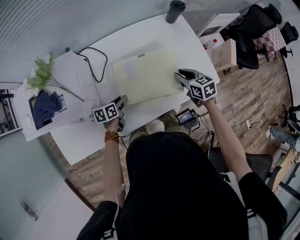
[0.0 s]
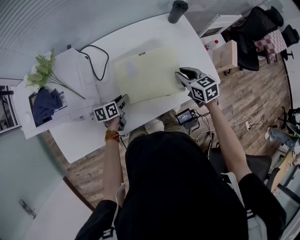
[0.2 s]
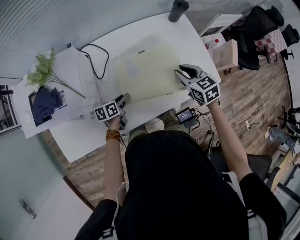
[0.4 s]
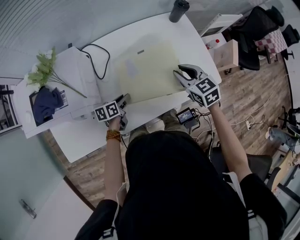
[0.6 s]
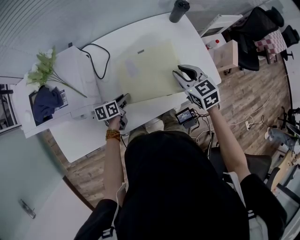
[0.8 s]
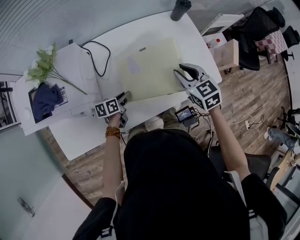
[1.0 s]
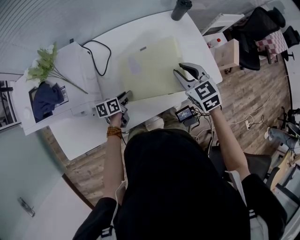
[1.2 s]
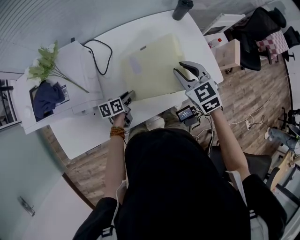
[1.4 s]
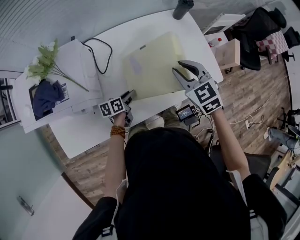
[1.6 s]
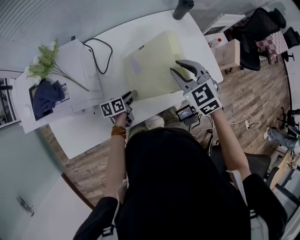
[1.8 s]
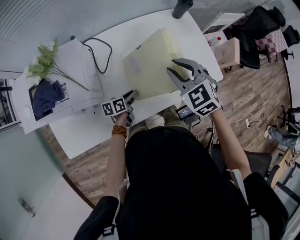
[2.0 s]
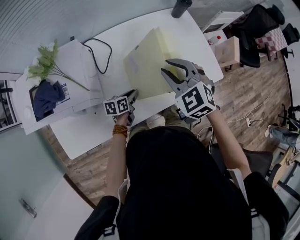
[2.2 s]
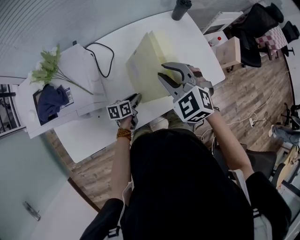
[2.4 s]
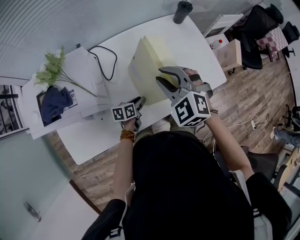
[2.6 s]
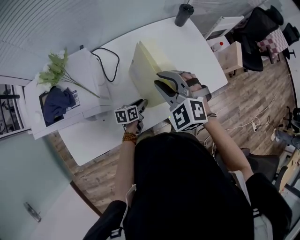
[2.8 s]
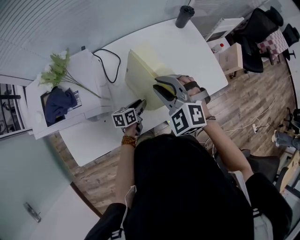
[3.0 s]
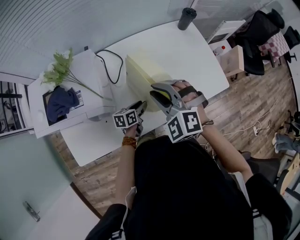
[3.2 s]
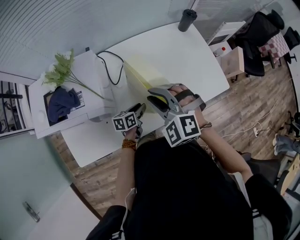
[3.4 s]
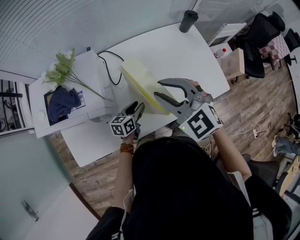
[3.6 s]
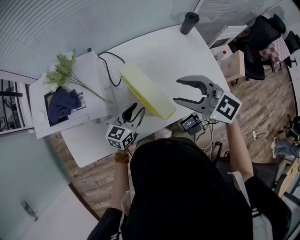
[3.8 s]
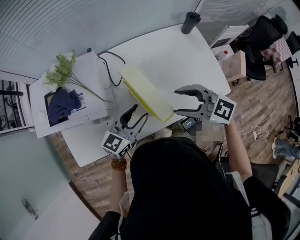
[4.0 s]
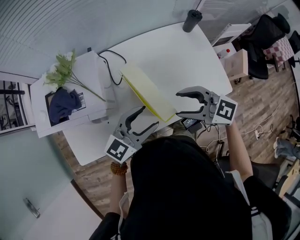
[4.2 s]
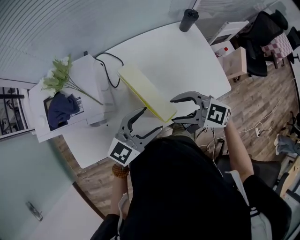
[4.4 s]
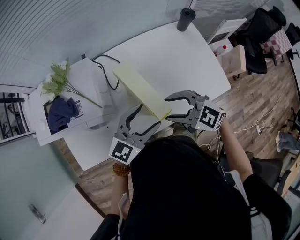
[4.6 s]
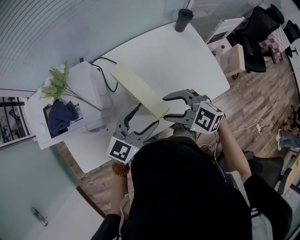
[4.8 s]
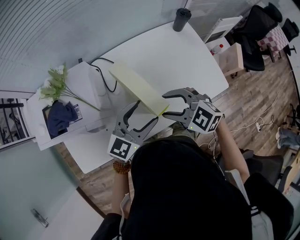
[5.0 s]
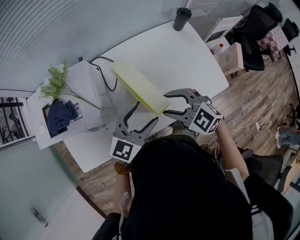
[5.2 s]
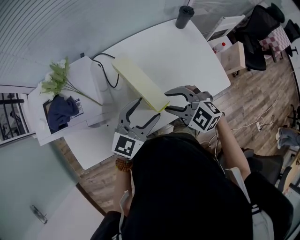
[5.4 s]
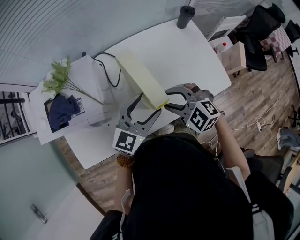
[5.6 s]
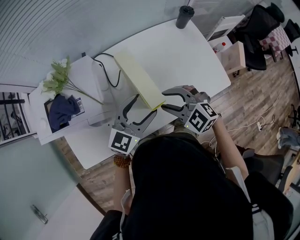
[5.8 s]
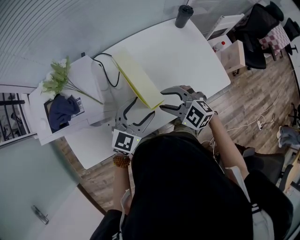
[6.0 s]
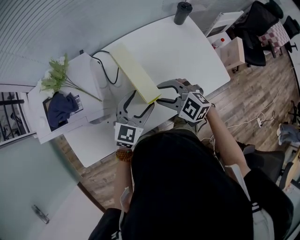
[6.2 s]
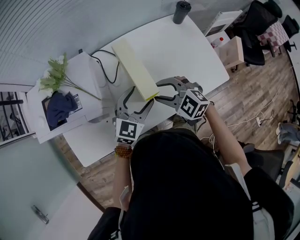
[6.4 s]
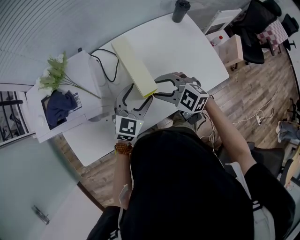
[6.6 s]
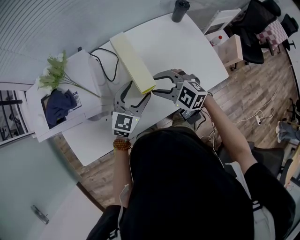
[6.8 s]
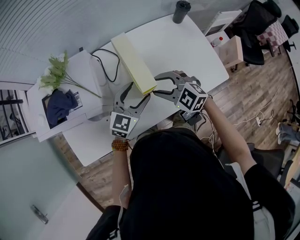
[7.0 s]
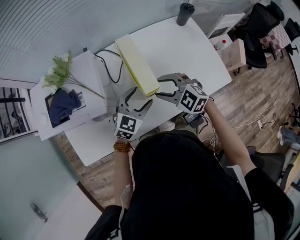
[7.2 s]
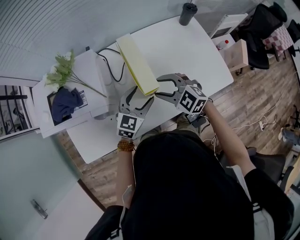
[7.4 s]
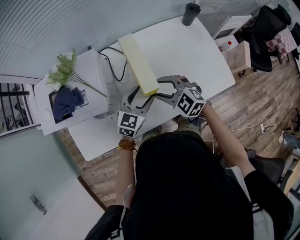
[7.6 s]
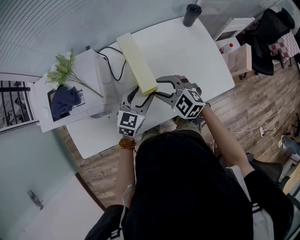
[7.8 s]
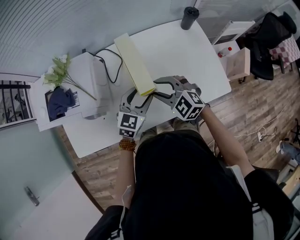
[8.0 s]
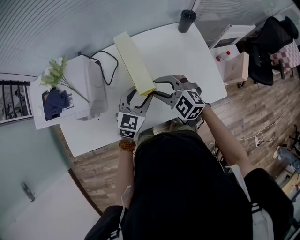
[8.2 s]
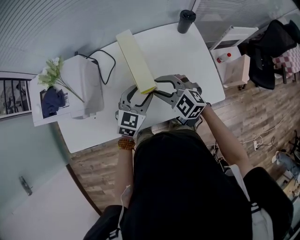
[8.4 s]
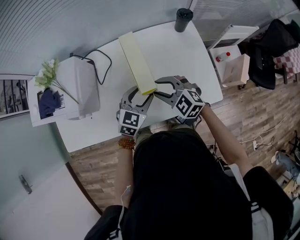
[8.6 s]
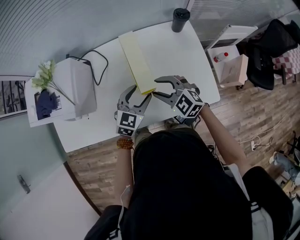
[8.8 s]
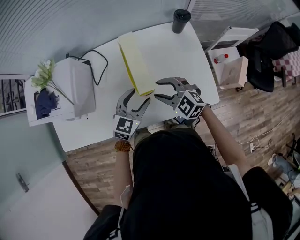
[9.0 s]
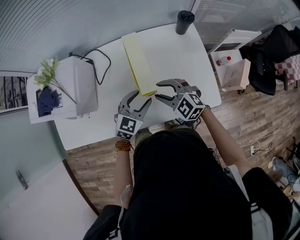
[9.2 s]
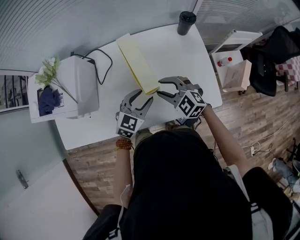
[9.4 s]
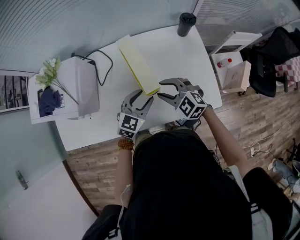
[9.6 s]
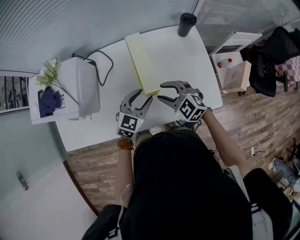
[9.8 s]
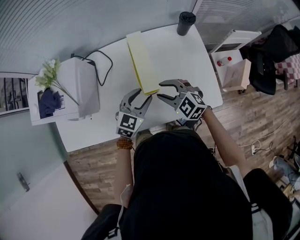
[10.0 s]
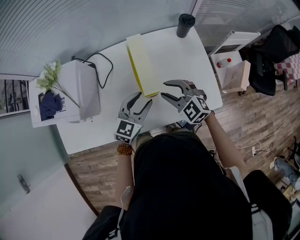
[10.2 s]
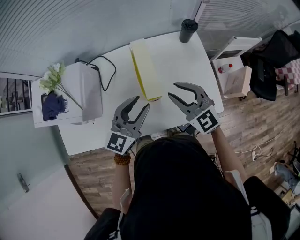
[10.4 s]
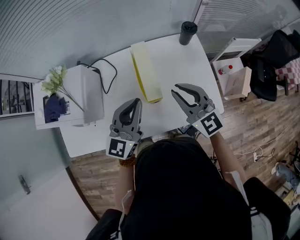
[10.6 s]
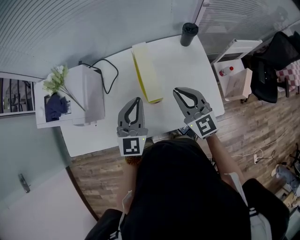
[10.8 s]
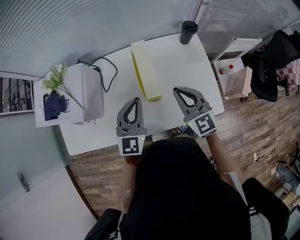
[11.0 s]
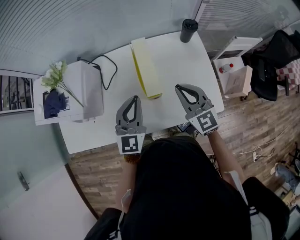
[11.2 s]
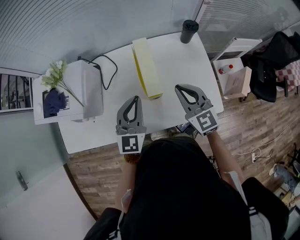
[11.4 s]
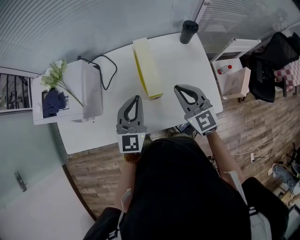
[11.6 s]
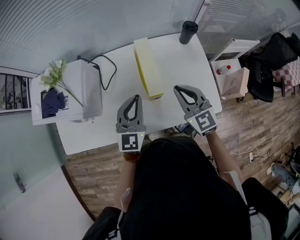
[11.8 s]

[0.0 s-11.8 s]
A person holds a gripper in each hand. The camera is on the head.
0.0 to 1.4 s: The right gripper shifts some 15 cm upward and to the left, and changes its angle by about 30 degrees.
1.4 to 3.0 s: The right gripper moves to the left and backward, about 15 cm, and turns by about 30 degrees.
3.0 to 4.4 s: The right gripper goes upward and returns, roughly 5 cm each way, changes its angle by about 50 degrees, and opens, while the left gripper heads upward, covering roughly 25 cm, rotates around the line of its fingers by approximately 50 degrees, clockwise from behind, and opens its fingers.
4.4 to 6.0 s: The right gripper travels downward by approximately 5 cm, and swivels about 20 degrees. The left gripper shifts by roughly 5 cm.
6.0 to 7.4 s: The left gripper is displaced downward by some 5 cm.
7.4 to 8.8 s: Both grippers move to the right, some 15 cm.
8.8 to 10.4 s: Both grippers travel together upward, approximately 10 cm. The left gripper rotates some 20 degrees; the right gripper swivels some 20 degrees.
10.4 to 11.8 s: The left gripper turns by approximately 20 degrees, and closes its fingers. The right gripper closes up.

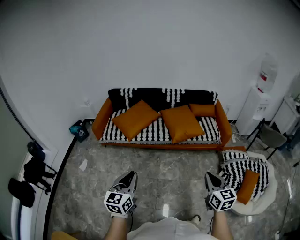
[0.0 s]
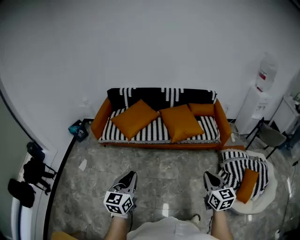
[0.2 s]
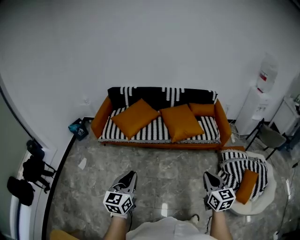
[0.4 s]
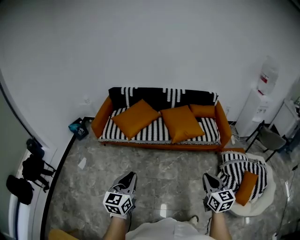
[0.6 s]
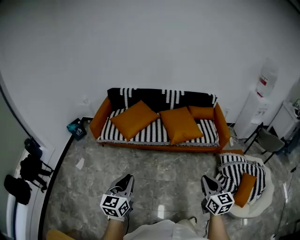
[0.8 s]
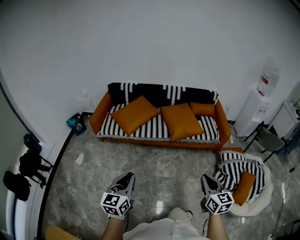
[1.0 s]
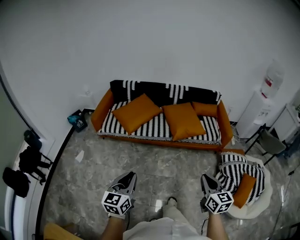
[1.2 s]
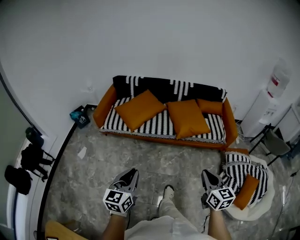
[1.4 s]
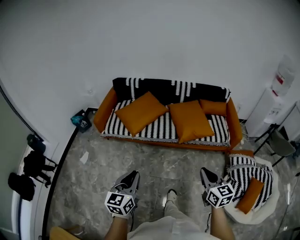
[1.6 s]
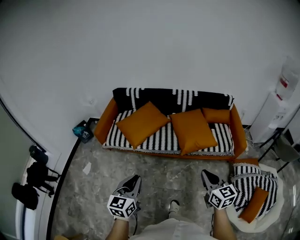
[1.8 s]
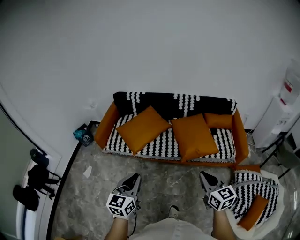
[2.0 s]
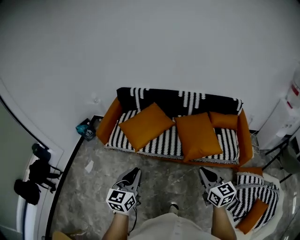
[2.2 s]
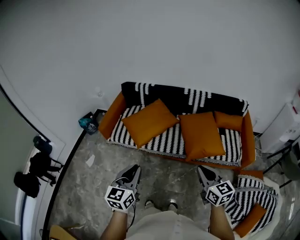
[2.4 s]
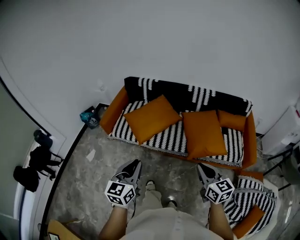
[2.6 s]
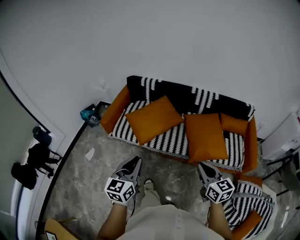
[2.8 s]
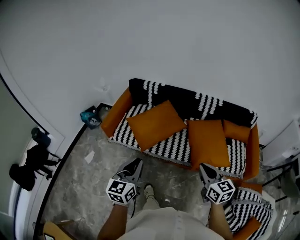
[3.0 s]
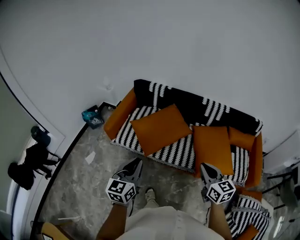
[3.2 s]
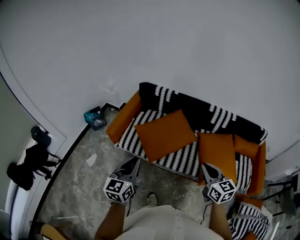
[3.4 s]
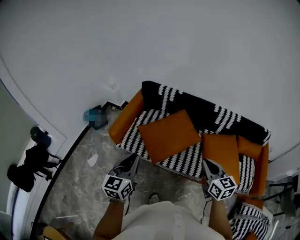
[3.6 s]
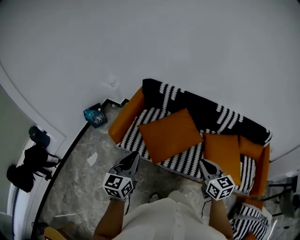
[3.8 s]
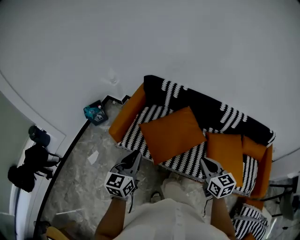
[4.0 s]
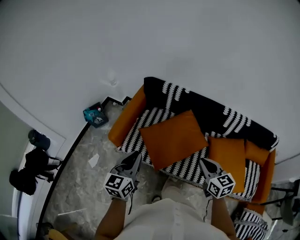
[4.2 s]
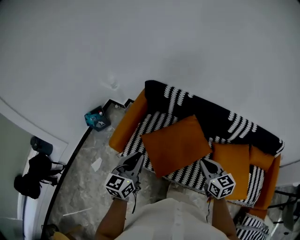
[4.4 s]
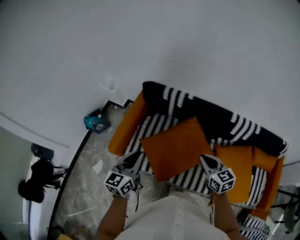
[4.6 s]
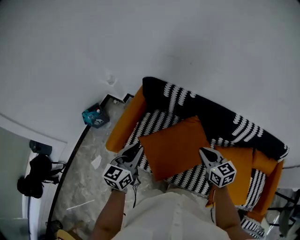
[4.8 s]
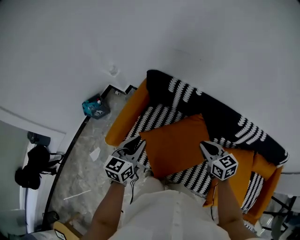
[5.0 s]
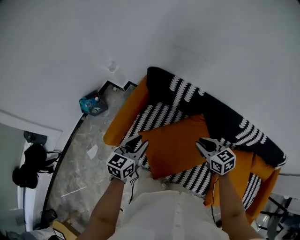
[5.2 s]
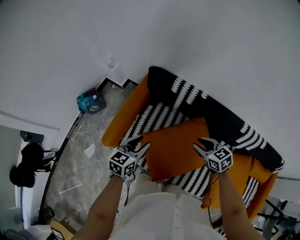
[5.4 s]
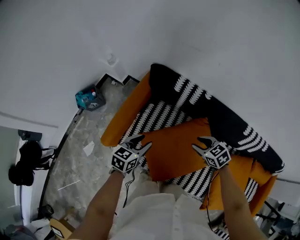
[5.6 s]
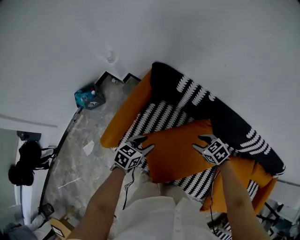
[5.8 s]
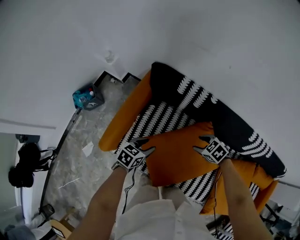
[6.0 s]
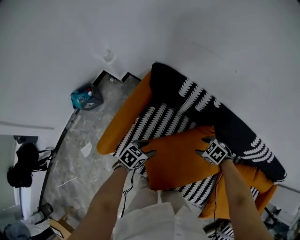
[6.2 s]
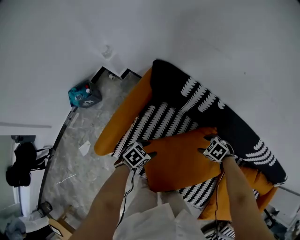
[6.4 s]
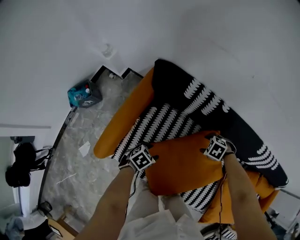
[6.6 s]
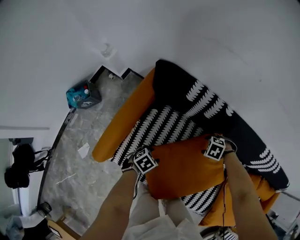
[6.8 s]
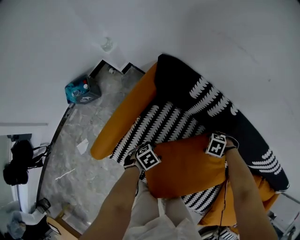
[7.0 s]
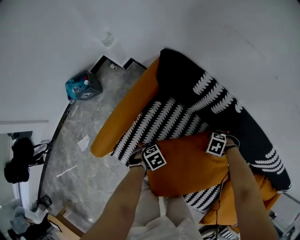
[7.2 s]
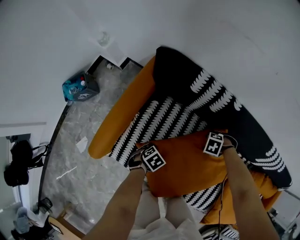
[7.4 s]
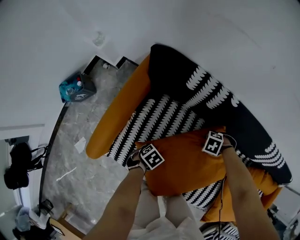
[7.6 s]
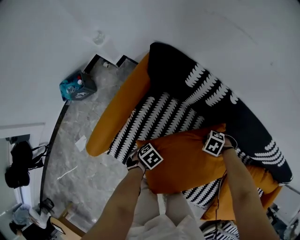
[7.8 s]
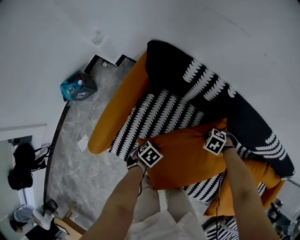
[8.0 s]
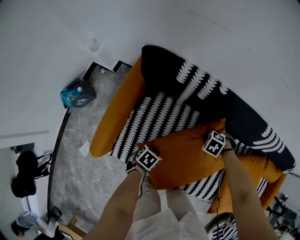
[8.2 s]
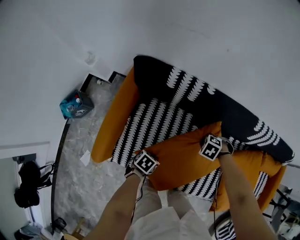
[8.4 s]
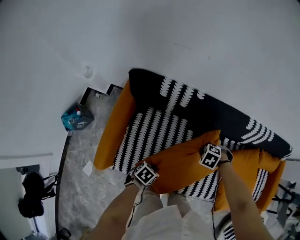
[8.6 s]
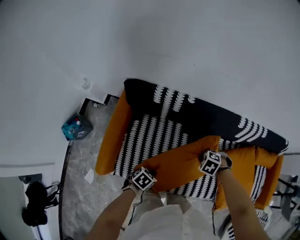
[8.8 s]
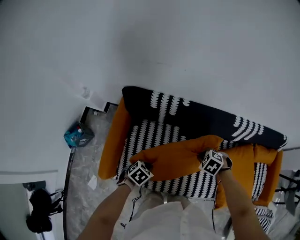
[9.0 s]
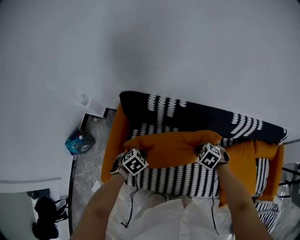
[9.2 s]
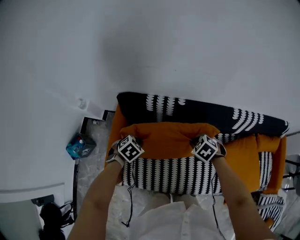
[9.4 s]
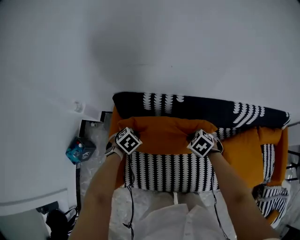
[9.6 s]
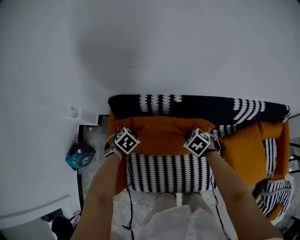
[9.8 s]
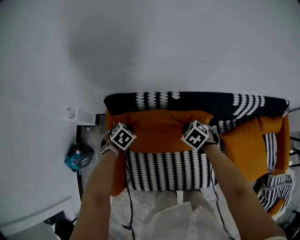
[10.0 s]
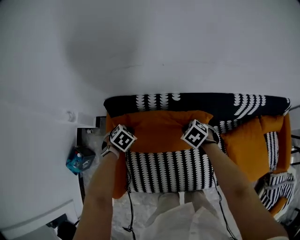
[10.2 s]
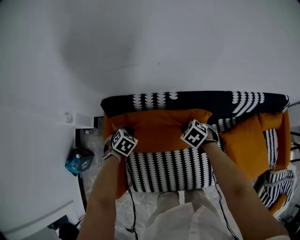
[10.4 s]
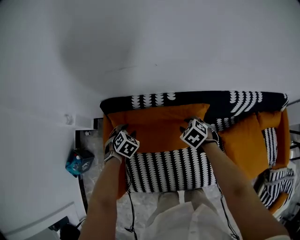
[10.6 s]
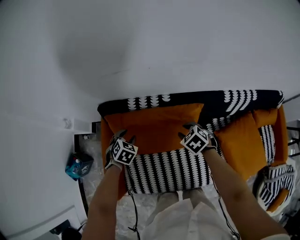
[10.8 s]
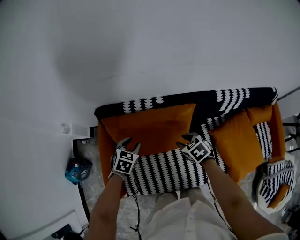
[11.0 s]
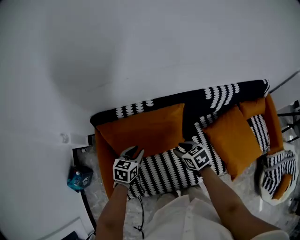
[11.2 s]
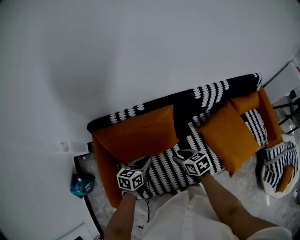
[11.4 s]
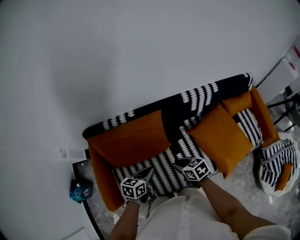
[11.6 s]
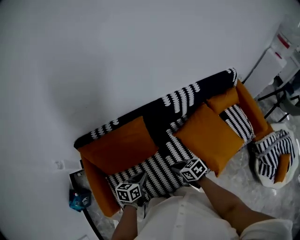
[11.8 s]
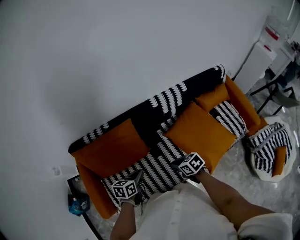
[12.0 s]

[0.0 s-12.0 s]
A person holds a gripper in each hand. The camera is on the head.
0.0 to 1.6 s: The two grippers go about 10 cm forward.
1.6 to 3.0 s: The grippers both shift forward by roughly 30 cm.
3.0 to 4.4 s: The grippers both shift forward by approximately 40 cm.
4.4 to 6.0 s: The left gripper shifts approximately 30 cm downward, tips its fingers downward by approximately 30 degrees, and opens its fingers, while the right gripper ends up some 40 cm from where it was, tilts its fingers some 40 degrees downward, and opens.
6.0 to 7.6 s: The grippers both shift downward by approximately 20 cm. The right gripper changes its angle by some 30 degrees, while the left gripper swivels some 30 degrees.
7.6 to 9.0 s: Both grippers travel together upward, approximately 20 cm. The right gripper changes its angle by about 30 degrees, and closes. Meanwhile the left gripper closes.
9.0 to 10.4 s: The left gripper shifts by roughly 25 cm, and changes its angle by about 20 degrees; the right gripper moves roughly 15 cm, and swivels roughly 20 degrees.
10.4 to 12.0 s: The left gripper shifts some 40 cm to the right and backward, swivels roughly 50 degrees, and opens, then closes again; the right gripper goes approximately 35 cm backward and to the right, twists approximately 40 degrees clockwise, seen from behind, and opens and closes again.
